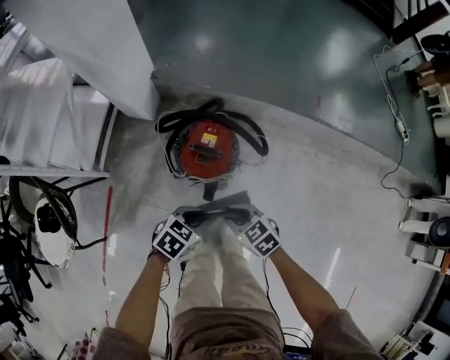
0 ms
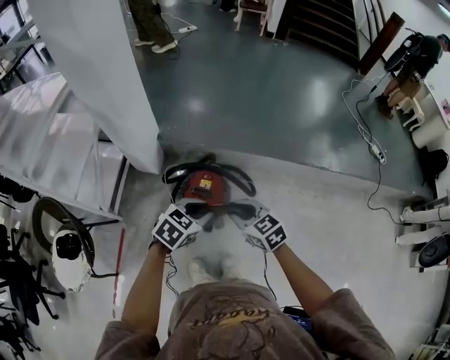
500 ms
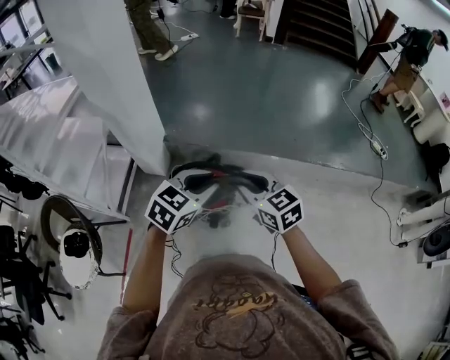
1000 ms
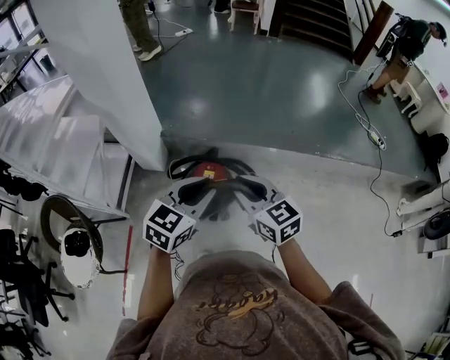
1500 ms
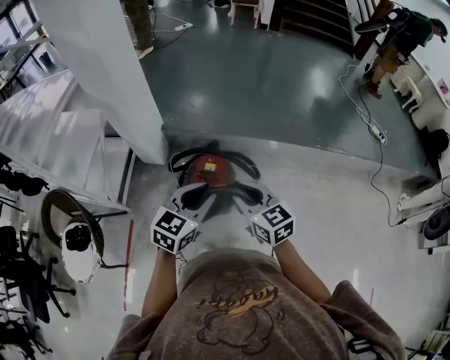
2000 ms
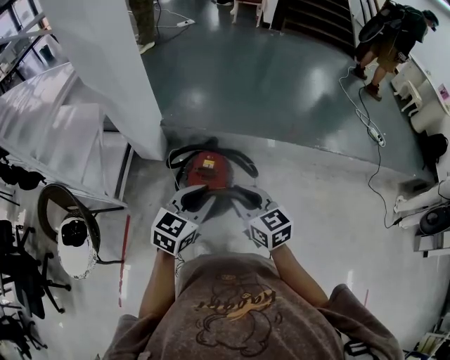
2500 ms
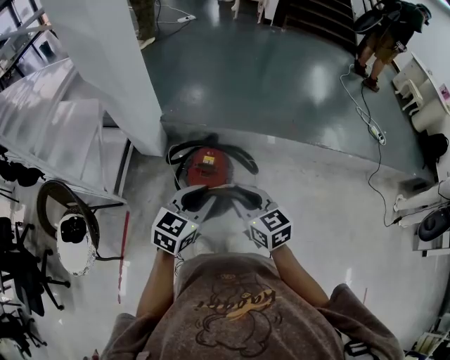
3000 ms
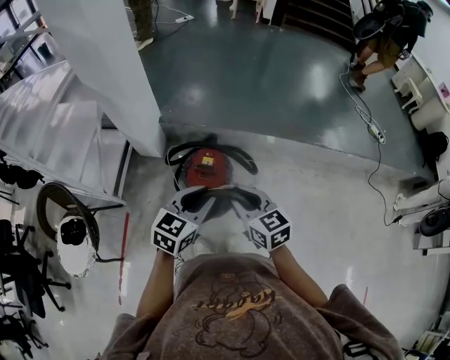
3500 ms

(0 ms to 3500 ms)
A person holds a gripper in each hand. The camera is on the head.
0 ms - 2000 ms: The grippers both shift upward by some 30 cm. The left gripper points its fingers approximately 30 degrees further upward. Meanwhile the right gripper rotates some 40 degrees.
2000 ms - 3500 ms: There are only small adjustments of the grippers.

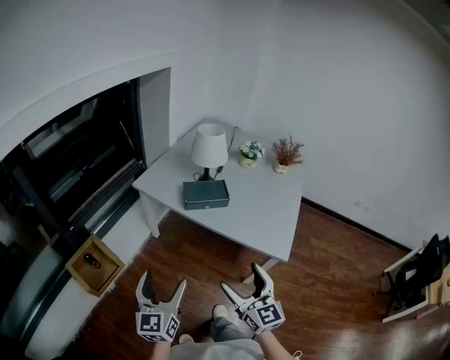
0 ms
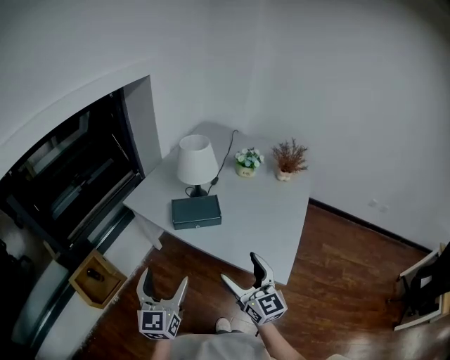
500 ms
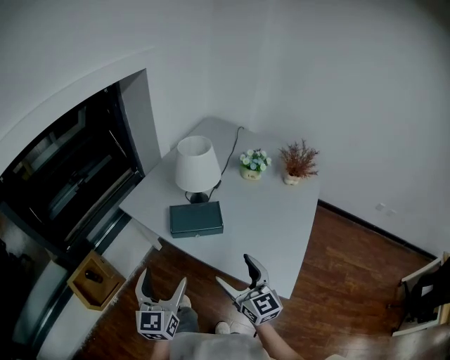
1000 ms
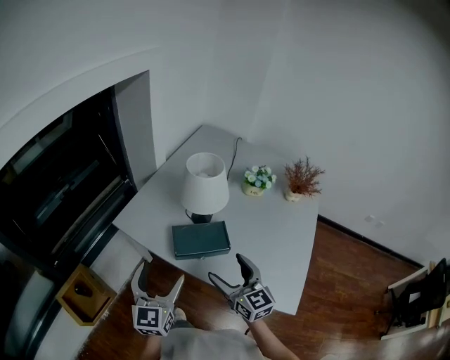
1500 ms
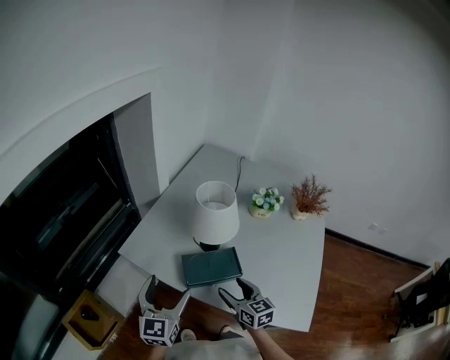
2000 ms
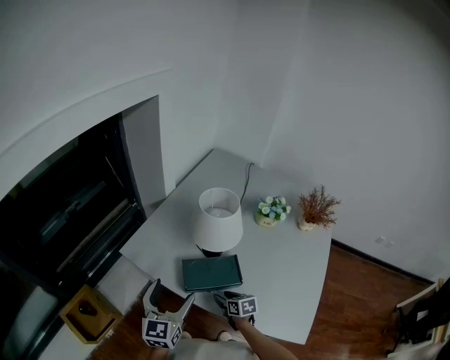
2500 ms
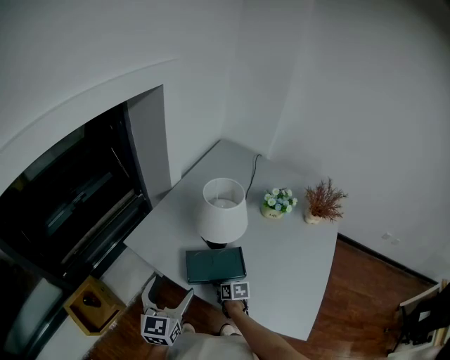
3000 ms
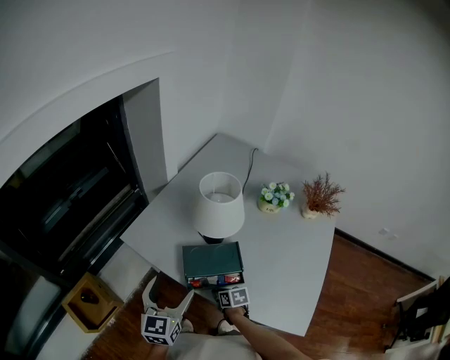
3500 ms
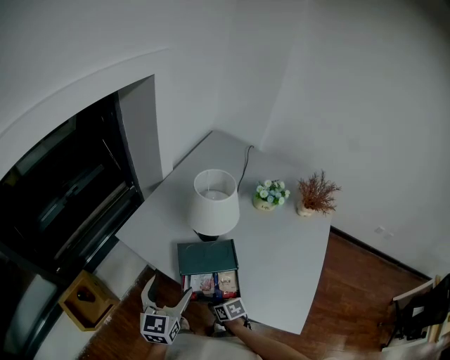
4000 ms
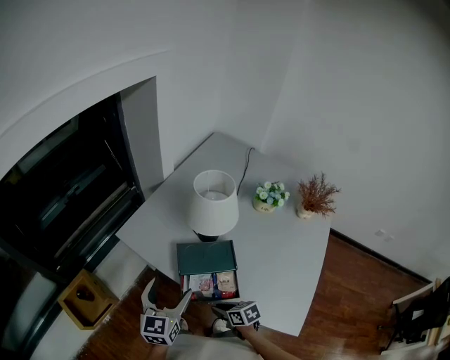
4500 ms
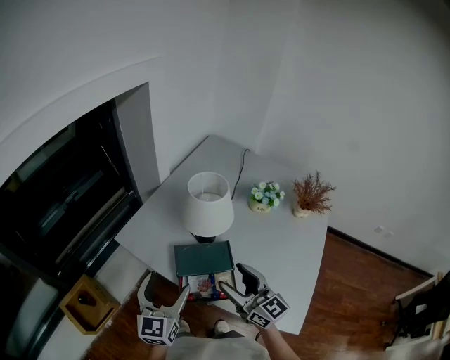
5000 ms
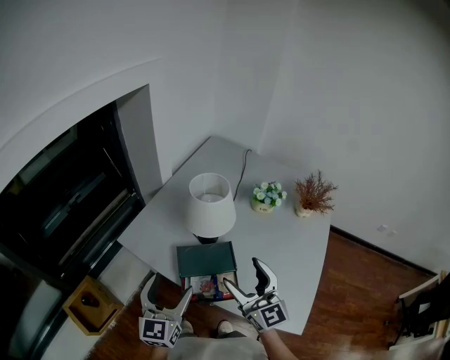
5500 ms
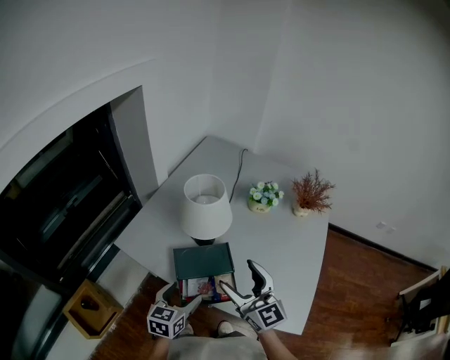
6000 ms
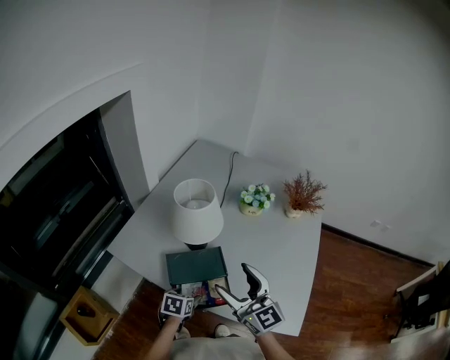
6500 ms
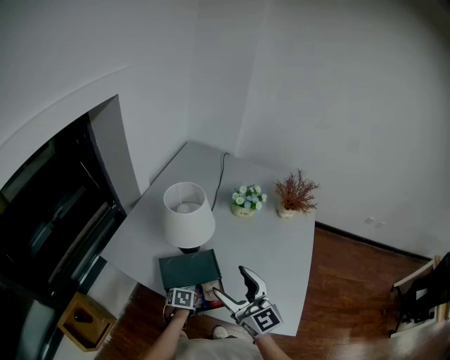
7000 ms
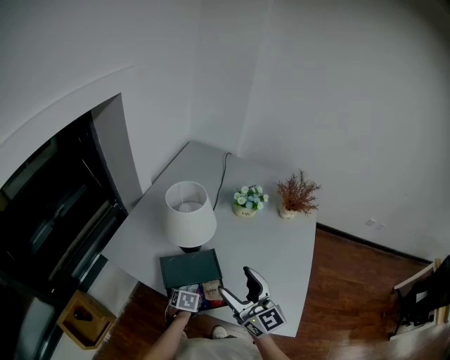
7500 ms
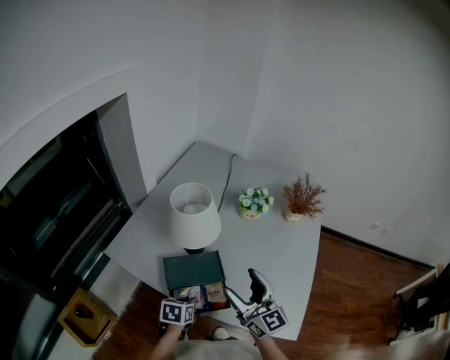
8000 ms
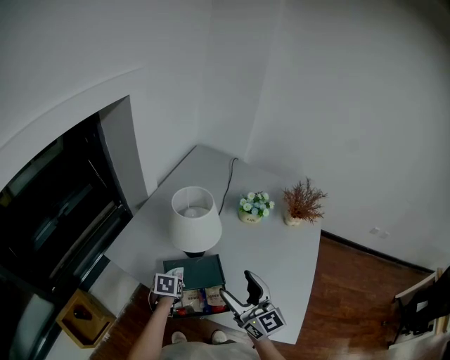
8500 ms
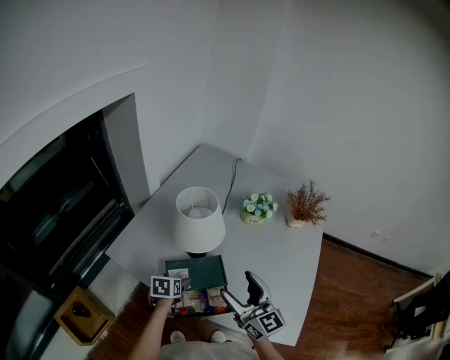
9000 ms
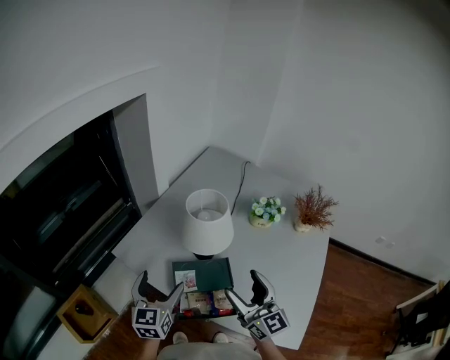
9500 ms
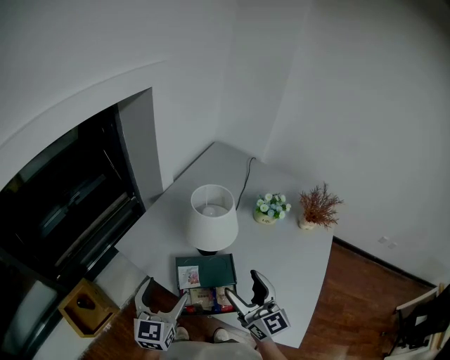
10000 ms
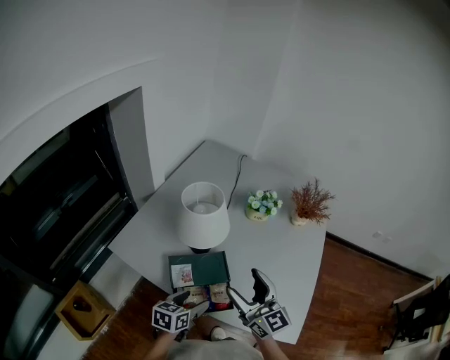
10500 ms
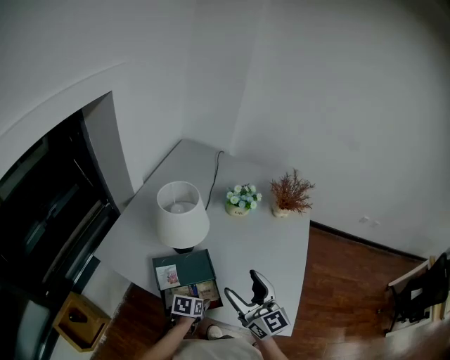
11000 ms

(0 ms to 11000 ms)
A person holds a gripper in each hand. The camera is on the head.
0 ms - 2000 ms: The two grippers go approximately 40 cm forward. The right gripper changes its angle by approximately 30 degrees.
2000 ms - 3500 ms: The right gripper is displaced downward by approximately 20 cm, tilts its fingers about 30 degrees downward, and closes.
3500 ms - 5500 ms: The right gripper is displaced upward by roughly 35 cm, tilts its fingers about 60 degrees upward, and opens, while the left gripper shifts approximately 5 cm upward.
5500 ms - 7500 ms: The left gripper travels downward by approximately 30 cm, points its fingers some 60 degrees further downward, and closes up.
7500 ms - 9000 ms: The left gripper goes approximately 10 cm forward, upward and to the left, and opens its fingers.
9000 ms - 11000 ms: The right gripper moves about 5 cm, while the left gripper goes upward and returns, roughly 20 cm each way, and closes up.

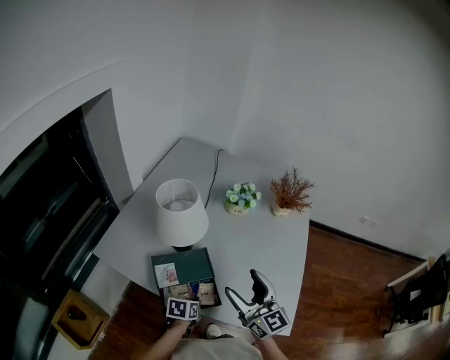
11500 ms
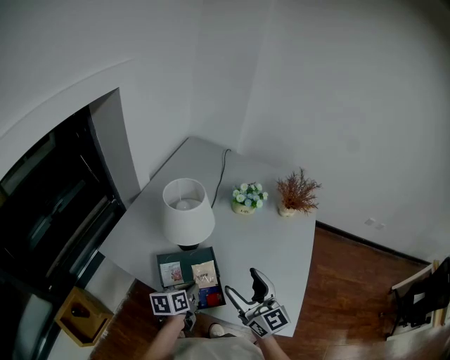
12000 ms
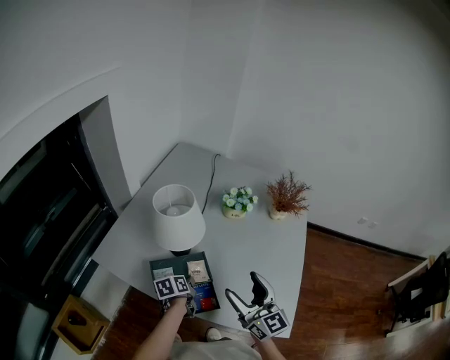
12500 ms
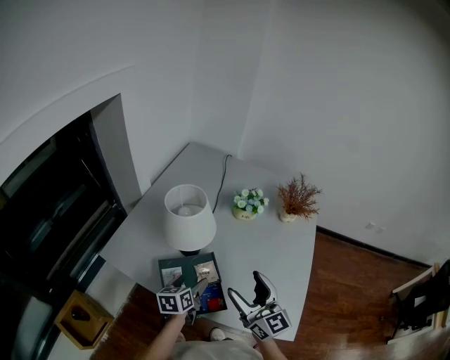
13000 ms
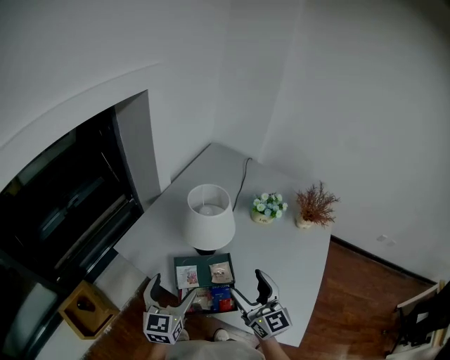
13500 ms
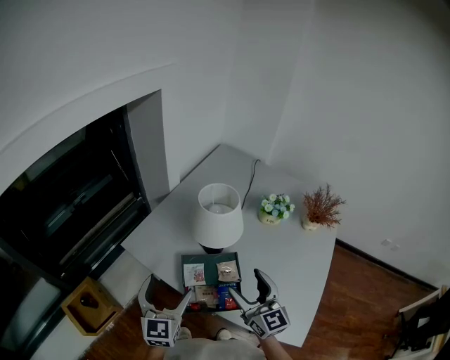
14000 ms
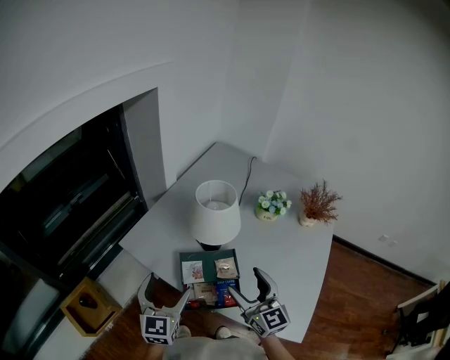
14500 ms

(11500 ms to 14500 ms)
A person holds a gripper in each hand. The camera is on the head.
11500 ms - 13000 ms: The left gripper heads upward, forward and to the left, covering about 15 cm, turns by about 30 degrees, and opens its fingers.
13000 ms - 14500 ms: The right gripper moves to the left, approximately 5 cm, while the left gripper shifts roughly 20 cm to the left, upward and backward, and turns by about 40 degrees.

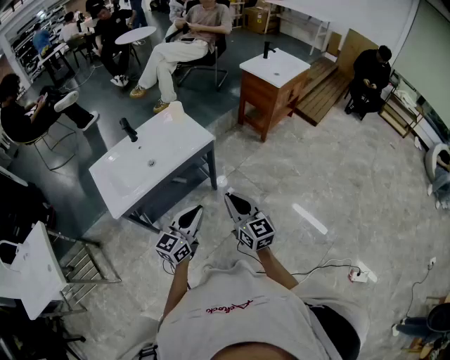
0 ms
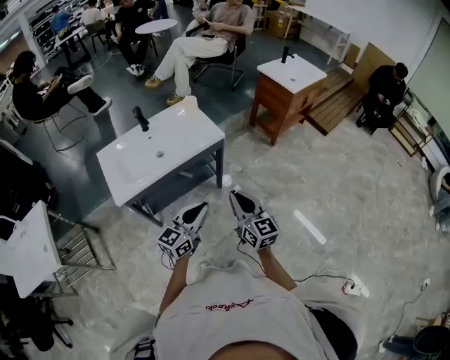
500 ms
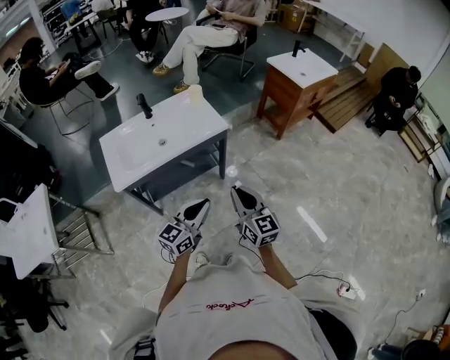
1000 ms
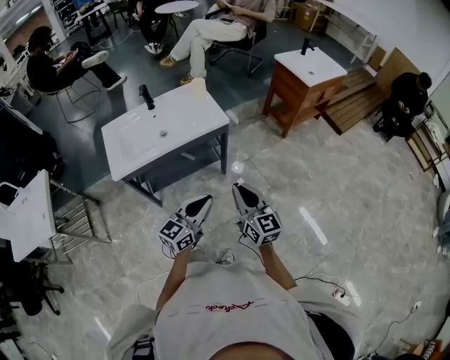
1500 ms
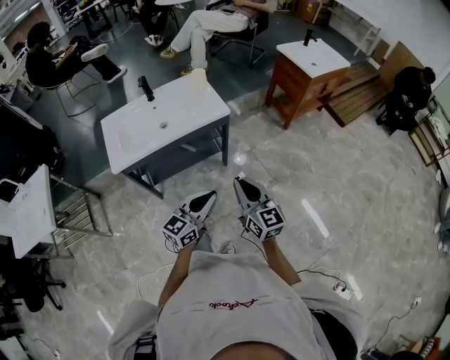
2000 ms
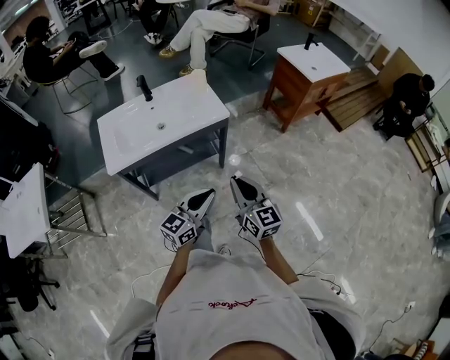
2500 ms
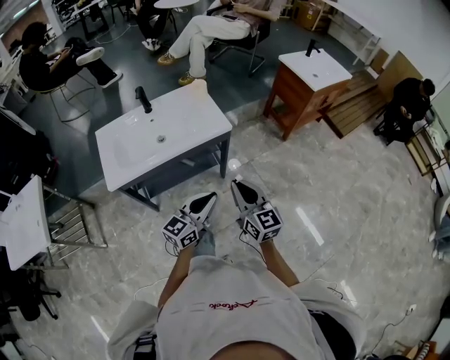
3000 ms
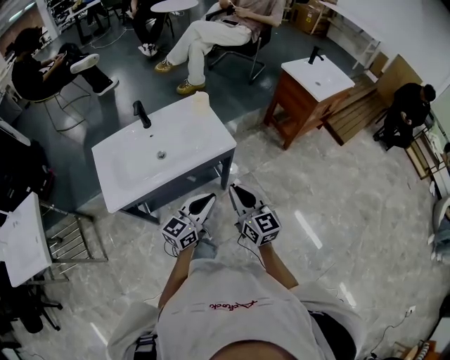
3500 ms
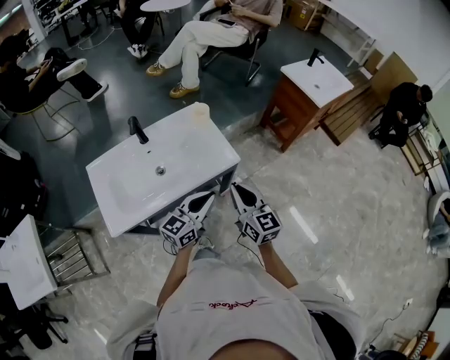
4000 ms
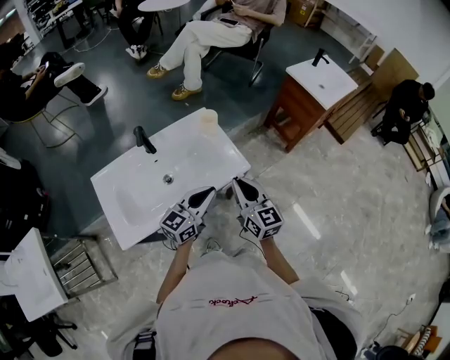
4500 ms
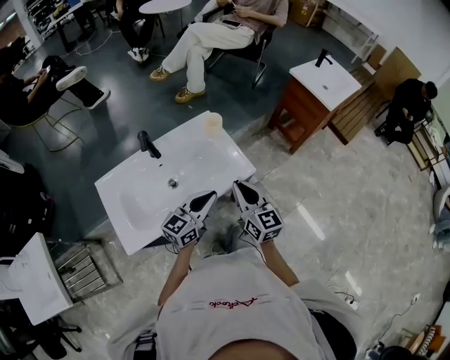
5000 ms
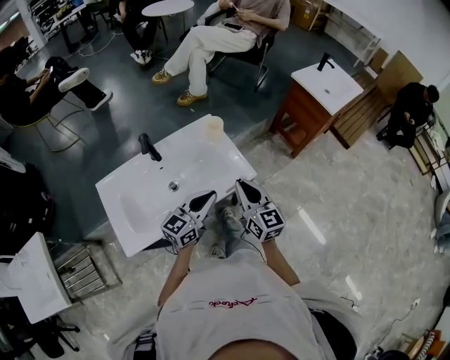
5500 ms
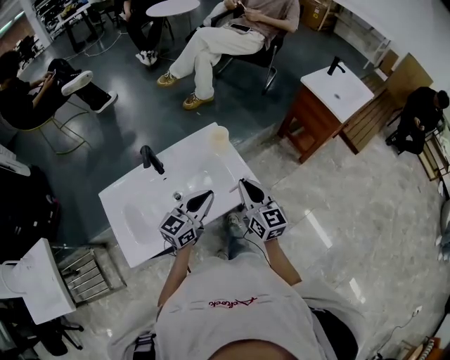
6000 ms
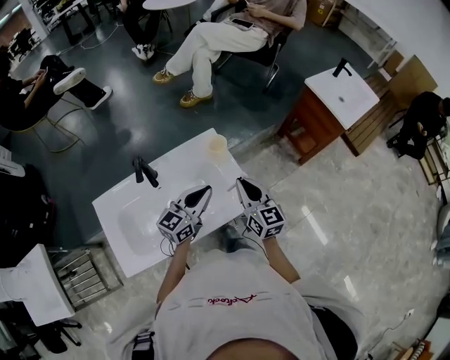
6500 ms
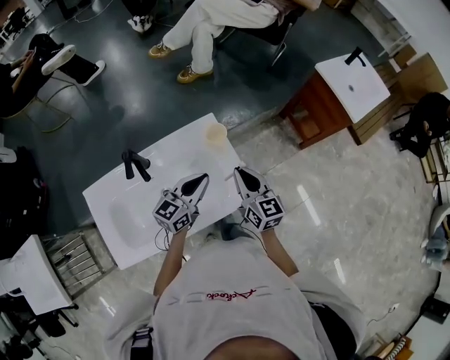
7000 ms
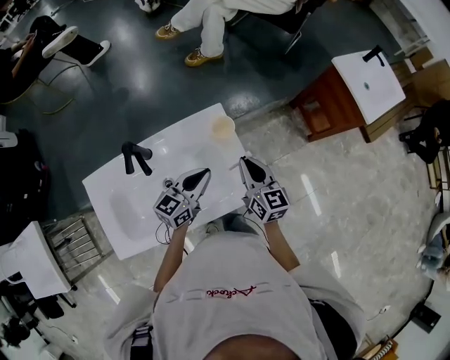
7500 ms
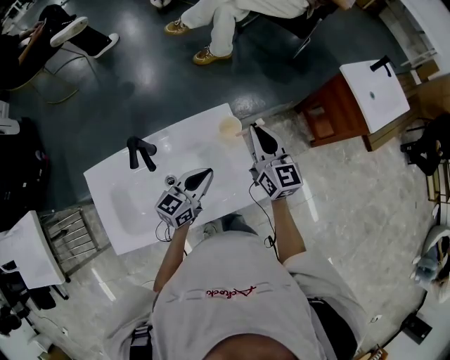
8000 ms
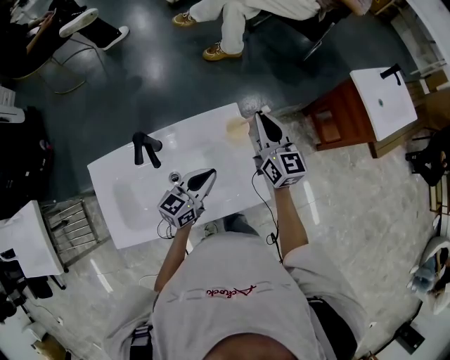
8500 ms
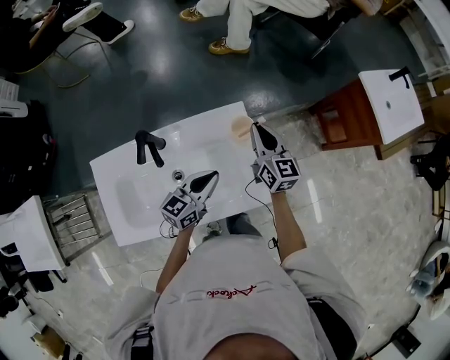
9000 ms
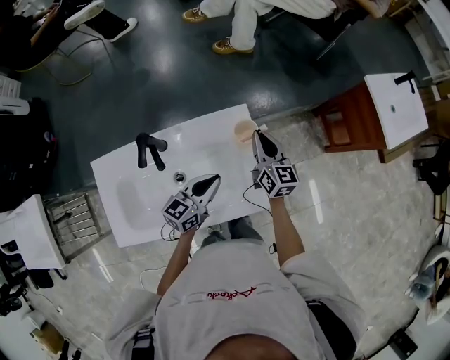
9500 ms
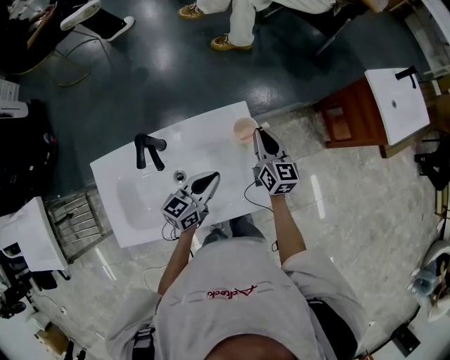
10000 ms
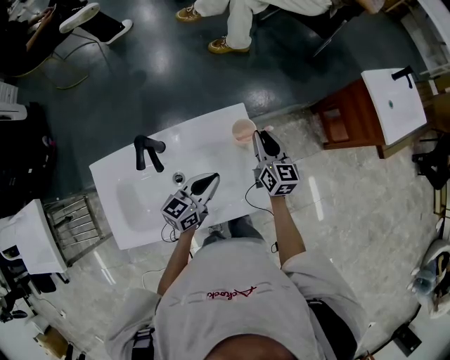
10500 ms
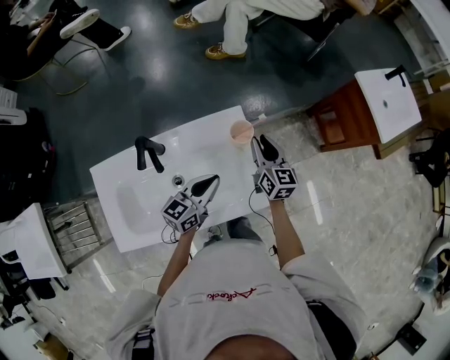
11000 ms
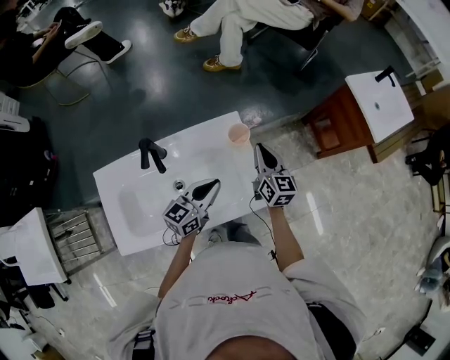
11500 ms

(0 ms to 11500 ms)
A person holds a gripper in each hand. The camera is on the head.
0 ms - 2000 ms: The left gripper travels to the right by about 5 cm.
2000 ms - 4000 ms: The right gripper goes some 25 cm forward and to the left. The left gripper travels forward by roughly 25 cm.
4000 ms - 6000 ms: The two grippers go roughly 15 cm forward and to the left.
6000 ms - 7500 ms: Both grippers move forward and downward, some 15 cm.
7500 ms - 9500 ms: The right gripper goes approximately 10 cm forward.
9500 ms - 11500 ms: The right gripper ends up approximately 5 cm from where it was, and opens and closes again.
